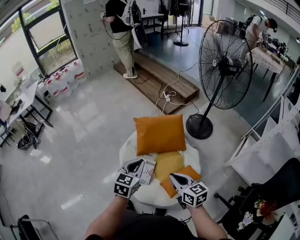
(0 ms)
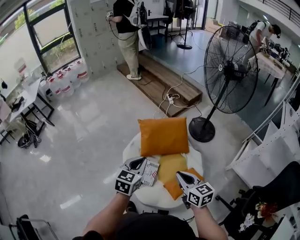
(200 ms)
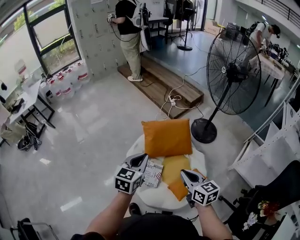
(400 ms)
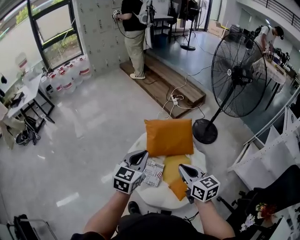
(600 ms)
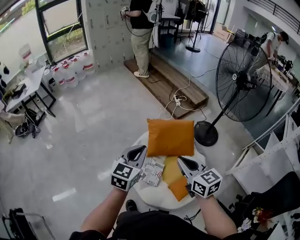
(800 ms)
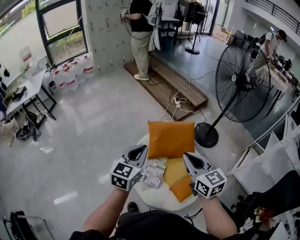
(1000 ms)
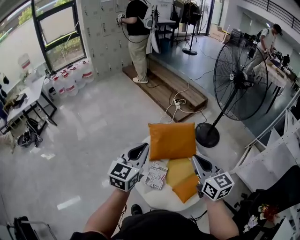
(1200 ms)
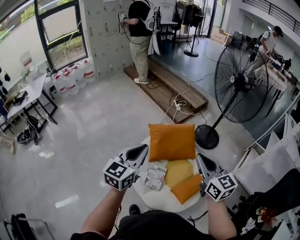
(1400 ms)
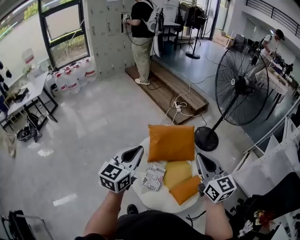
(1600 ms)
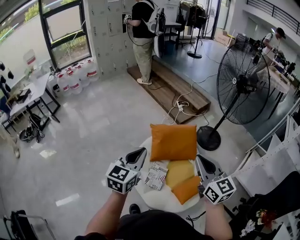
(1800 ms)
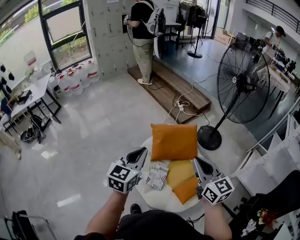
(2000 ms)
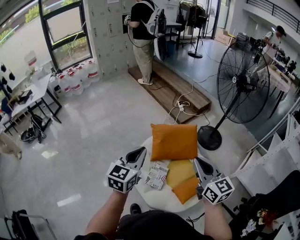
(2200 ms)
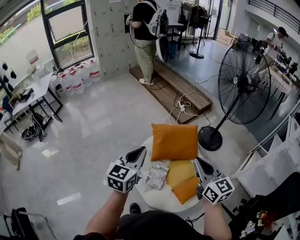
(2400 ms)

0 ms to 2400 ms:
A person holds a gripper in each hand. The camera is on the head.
0 ms to 1200 ms: The right gripper heads upward, to the left and forward, covering roughly 20 cm, and swivels about 20 degrees, while the left gripper heads to the left and upward, covering approximately 20 cm, and changes its angle by approximately 20 degrees.
1200 ms to 2400 ms: The grippers make only small movements.

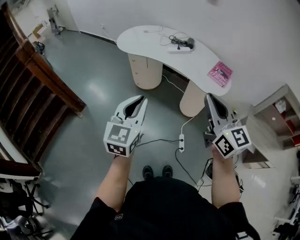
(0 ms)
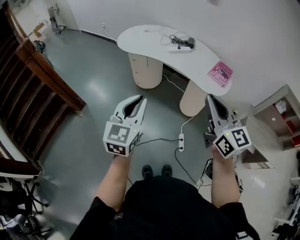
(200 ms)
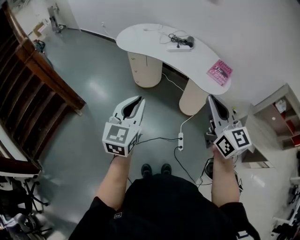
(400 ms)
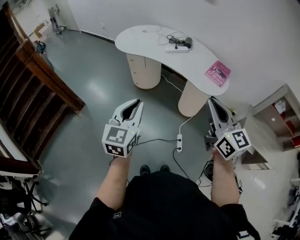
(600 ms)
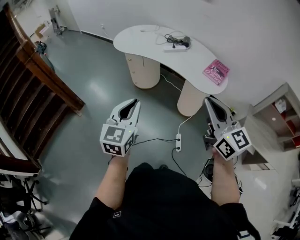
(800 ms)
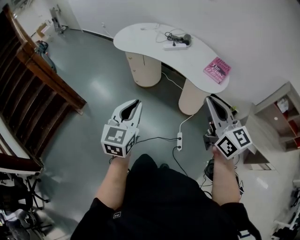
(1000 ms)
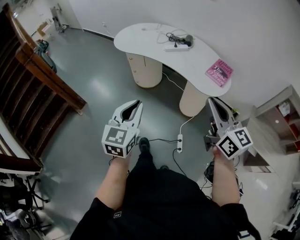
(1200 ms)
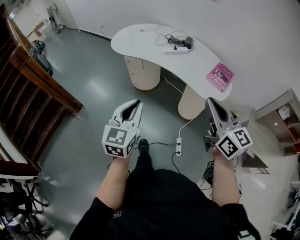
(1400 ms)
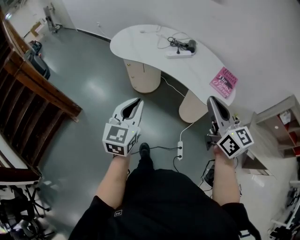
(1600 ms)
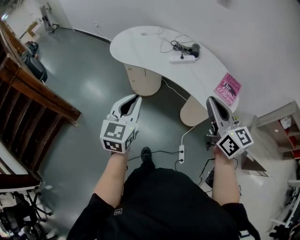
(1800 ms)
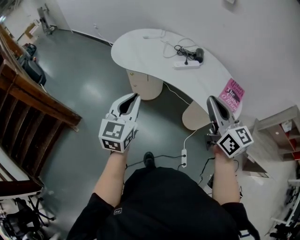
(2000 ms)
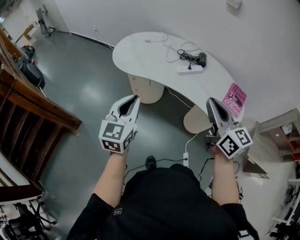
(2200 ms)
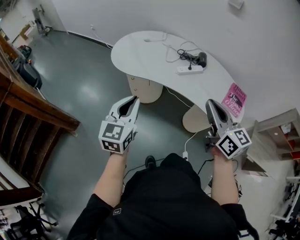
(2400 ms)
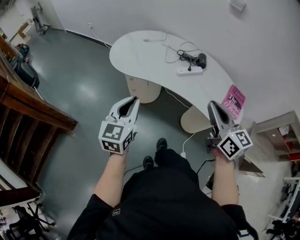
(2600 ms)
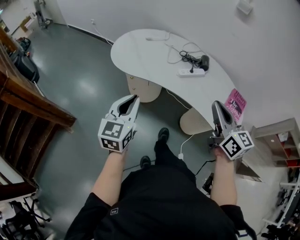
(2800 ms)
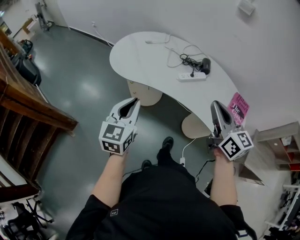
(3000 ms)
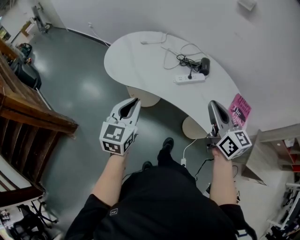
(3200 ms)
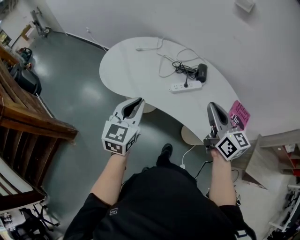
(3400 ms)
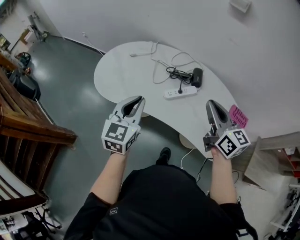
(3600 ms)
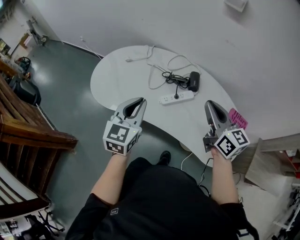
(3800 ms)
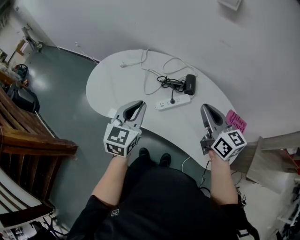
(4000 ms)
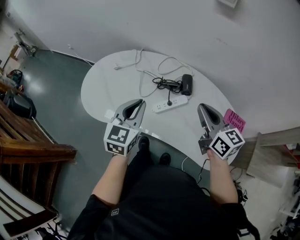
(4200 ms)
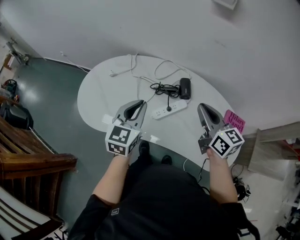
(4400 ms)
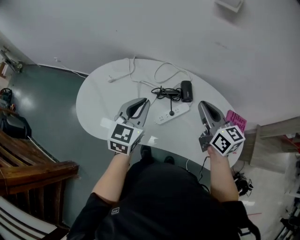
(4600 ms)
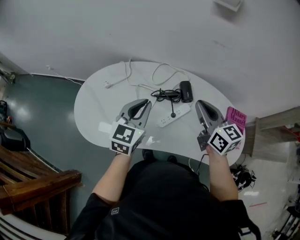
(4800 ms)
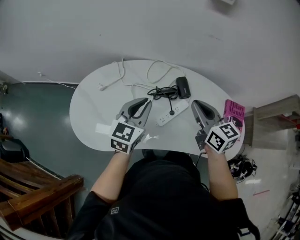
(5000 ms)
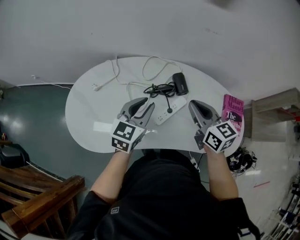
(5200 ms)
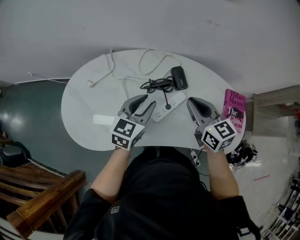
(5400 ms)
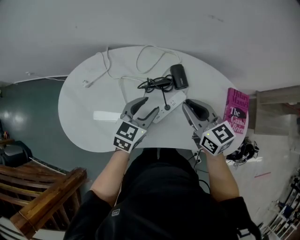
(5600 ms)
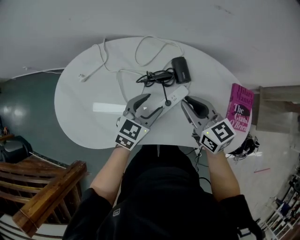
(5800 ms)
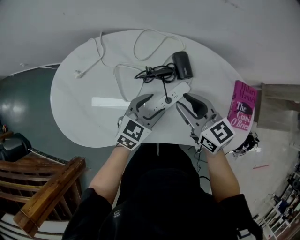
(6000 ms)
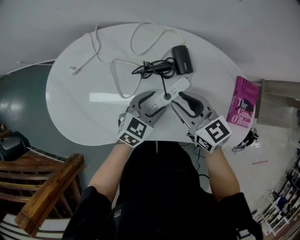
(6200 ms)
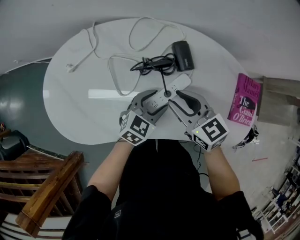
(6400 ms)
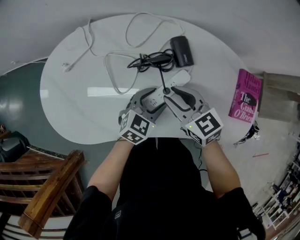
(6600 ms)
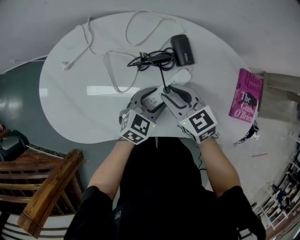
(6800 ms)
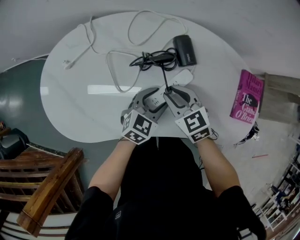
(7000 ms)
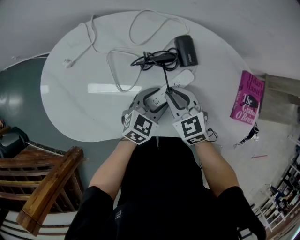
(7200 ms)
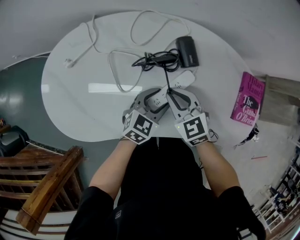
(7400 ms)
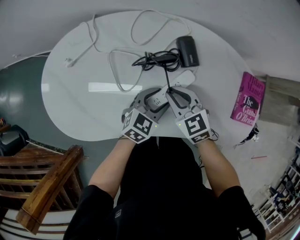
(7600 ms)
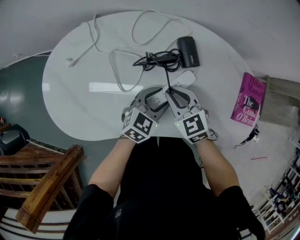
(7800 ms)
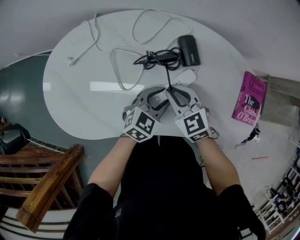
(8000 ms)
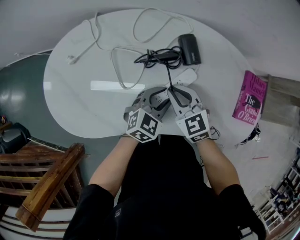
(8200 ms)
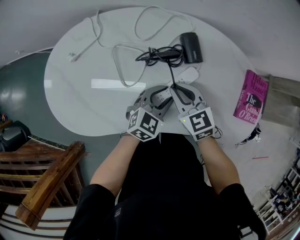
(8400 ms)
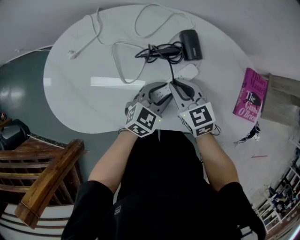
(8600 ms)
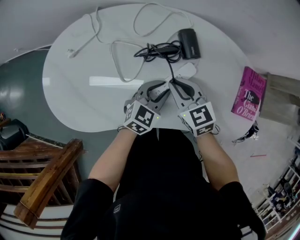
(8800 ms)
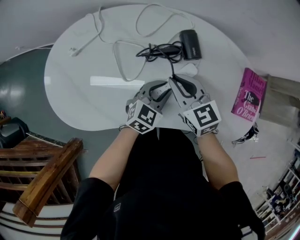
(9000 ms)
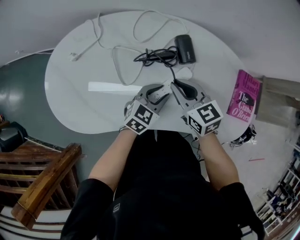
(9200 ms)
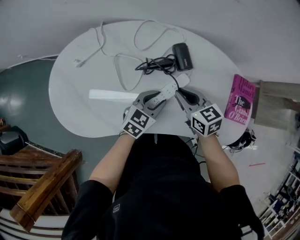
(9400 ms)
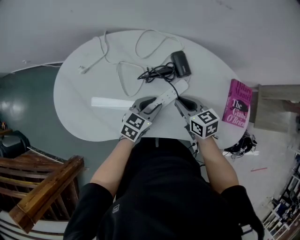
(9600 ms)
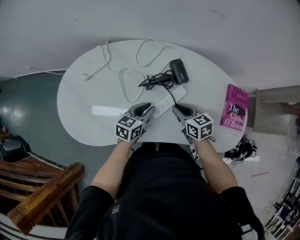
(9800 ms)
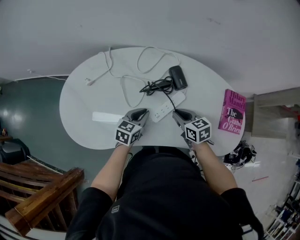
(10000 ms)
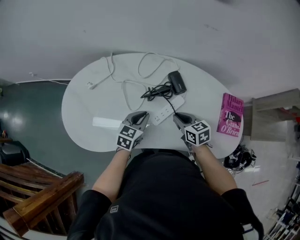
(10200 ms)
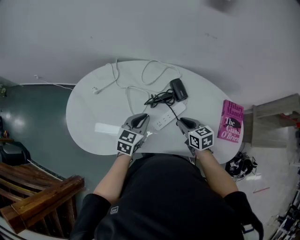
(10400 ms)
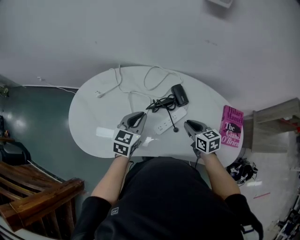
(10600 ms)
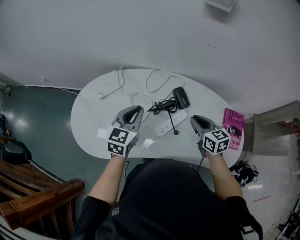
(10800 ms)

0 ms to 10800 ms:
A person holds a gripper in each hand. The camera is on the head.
0 ms to 1600 ms: Both grippers move forward, about 15 cm.
1600 ms to 3000 ms: The left gripper travels forward and to the left by approximately 25 cm. The right gripper moves forward, roughly 25 cm.
3000 ms to 4600 ms: The right gripper shifts about 30 cm forward, while the left gripper goes approximately 40 cm forward and to the right, and rotates approximately 20 degrees.
4600 ms to 6200 ms: The right gripper is displaced downward and to the left by about 15 cm, and opens up. Meanwhile the left gripper is displaced downward by approximately 25 cm, changes its angle by roughly 40 degrees, and opens up.
6200 ms to 7800 ms: The right gripper heads downward, covering approximately 10 cm, and turns by some 20 degrees.
7800 ms to 9200 ms: The grippers make only small movements.
9200 ms to 10800 ms: The left gripper heads upward and to the left, covering approximately 25 cm, rotates approximately 30 degrees, and closes up, while the right gripper heads to the right and upward, covering about 10 cm.

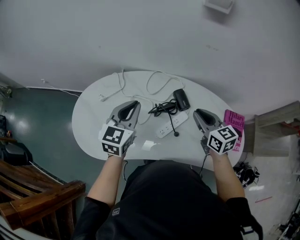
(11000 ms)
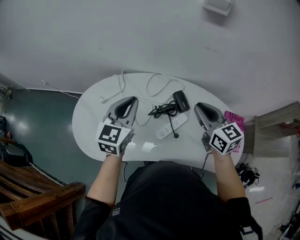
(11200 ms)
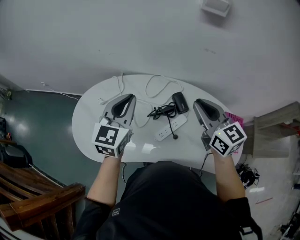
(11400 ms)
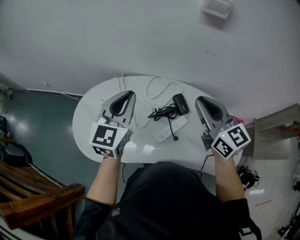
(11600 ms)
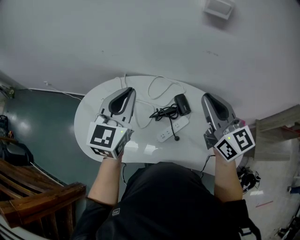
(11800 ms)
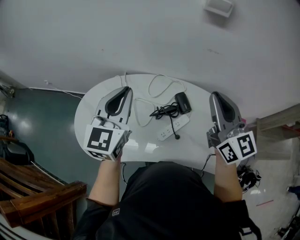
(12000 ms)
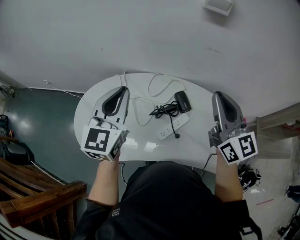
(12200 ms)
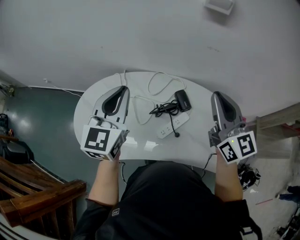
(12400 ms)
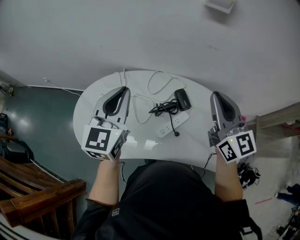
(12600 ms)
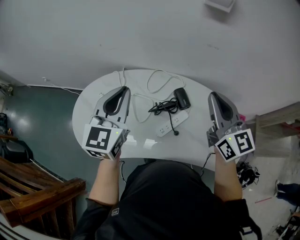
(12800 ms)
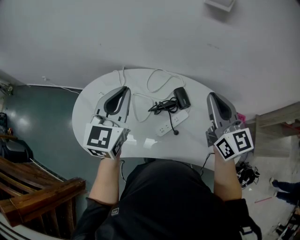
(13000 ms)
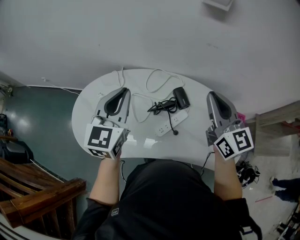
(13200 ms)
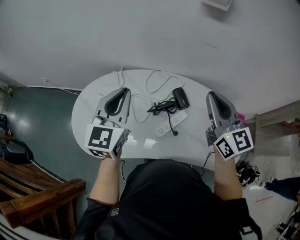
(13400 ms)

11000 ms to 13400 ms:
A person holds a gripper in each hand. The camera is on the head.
11000 ms to 12200 ms: The right gripper heads upward, covering roughly 20 cm, and swivels about 30 degrees, while the left gripper goes roughly 10 cm upward.
12200 ms to 13400 ms: There are only small adjustments of the grippers.

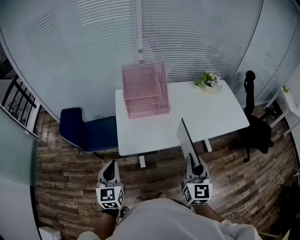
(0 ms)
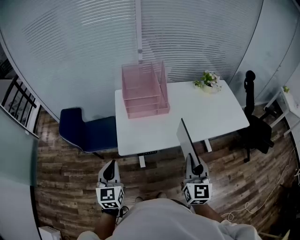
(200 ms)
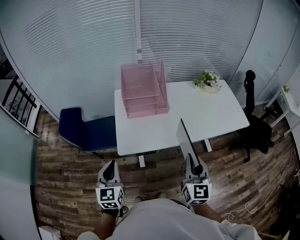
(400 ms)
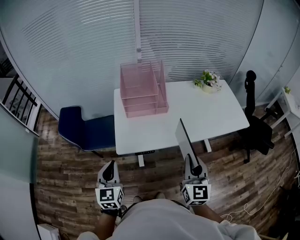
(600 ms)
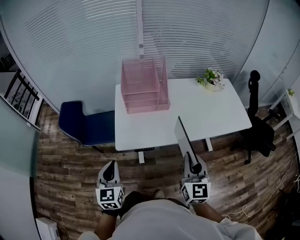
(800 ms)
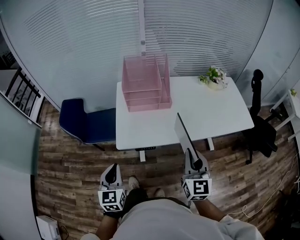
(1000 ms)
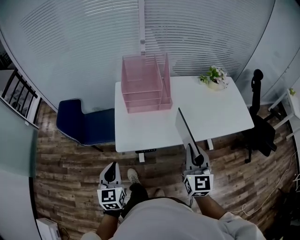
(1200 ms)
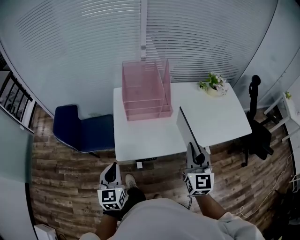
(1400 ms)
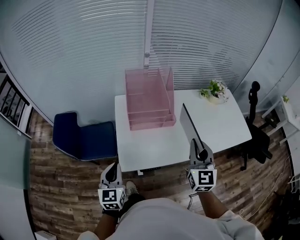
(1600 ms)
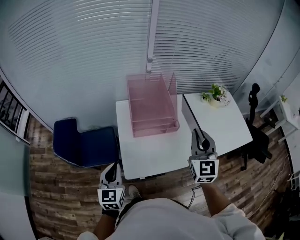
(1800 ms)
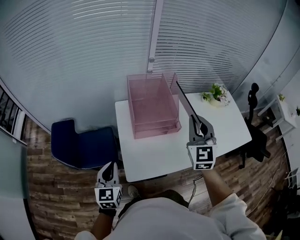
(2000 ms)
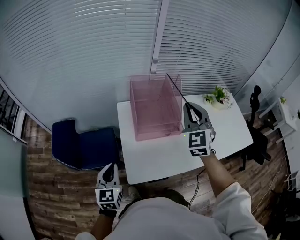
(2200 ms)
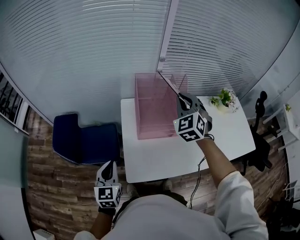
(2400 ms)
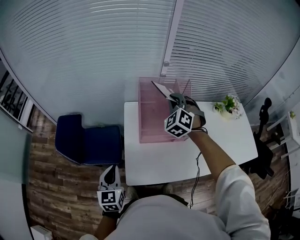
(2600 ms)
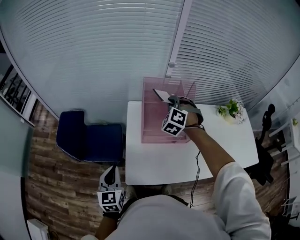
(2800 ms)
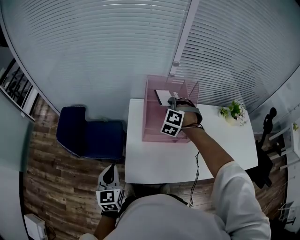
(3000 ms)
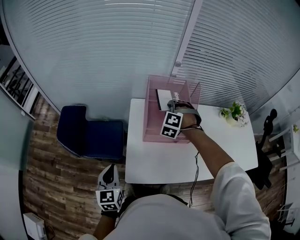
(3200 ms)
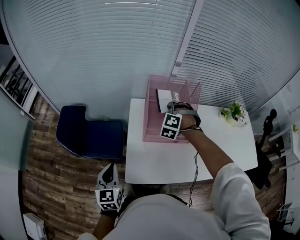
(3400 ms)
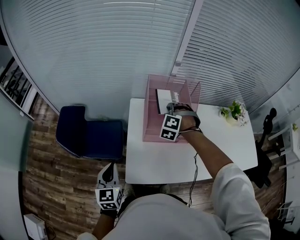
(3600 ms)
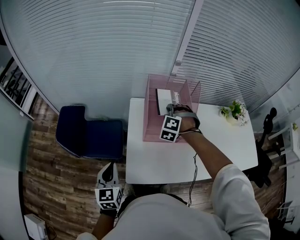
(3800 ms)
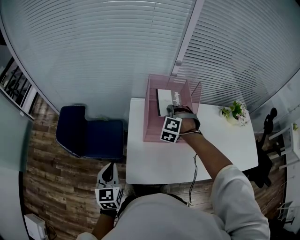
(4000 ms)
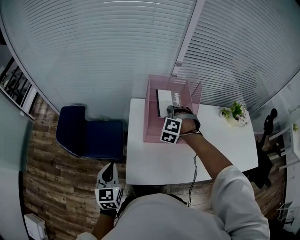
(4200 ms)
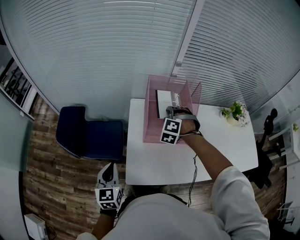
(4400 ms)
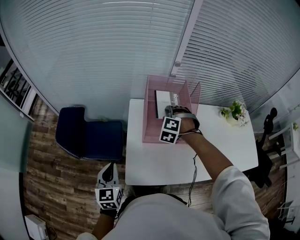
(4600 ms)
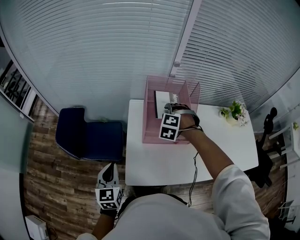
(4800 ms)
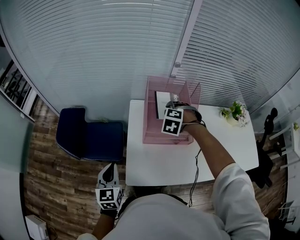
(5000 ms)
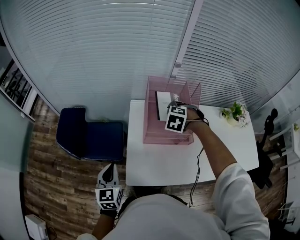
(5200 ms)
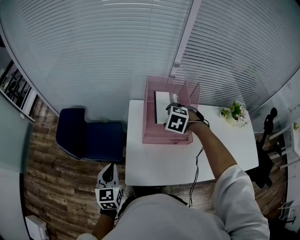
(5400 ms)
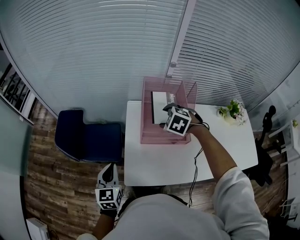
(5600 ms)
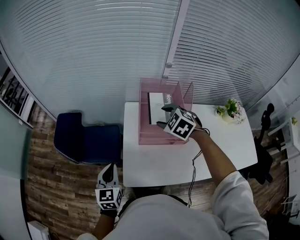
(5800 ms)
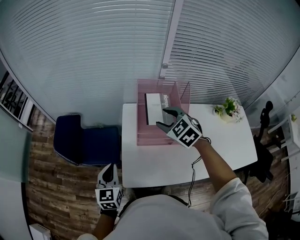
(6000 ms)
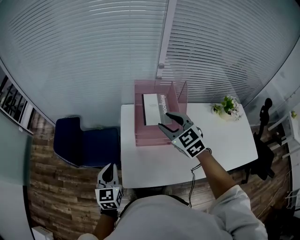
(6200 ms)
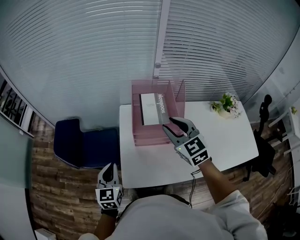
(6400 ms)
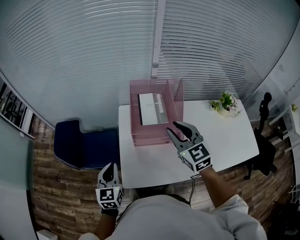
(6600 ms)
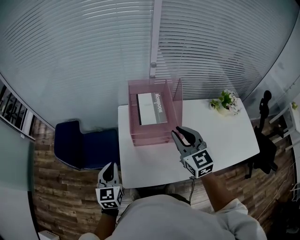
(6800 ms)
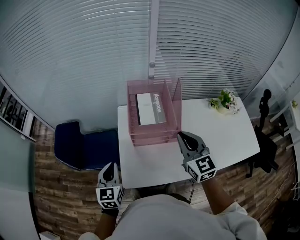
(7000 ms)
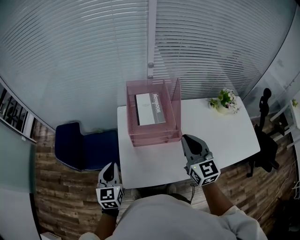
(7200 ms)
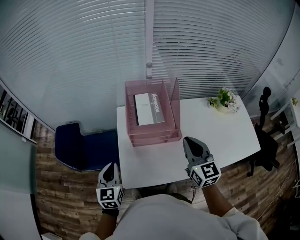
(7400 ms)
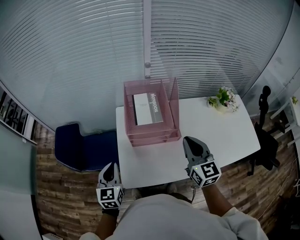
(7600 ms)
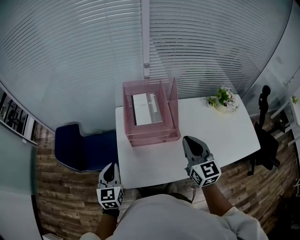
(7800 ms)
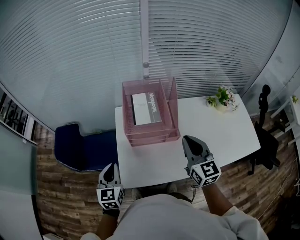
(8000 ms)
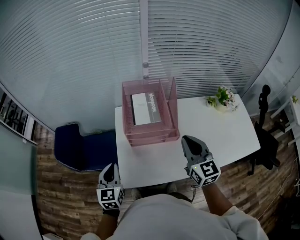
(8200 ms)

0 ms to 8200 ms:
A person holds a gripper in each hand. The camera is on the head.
0 ms to 1600 ms: The grippers both shift forward by about 15 cm.
1600 ms to 3200 ms: The left gripper travels to the left and forward by some 10 cm. Meanwhile the right gripper moves forward and to the left, some 40 cm, and rolls counterclockwise, seen from behind, by roughly 80 degrees.
3200 ms to 5000 ms: The right gripper changes its angle by approximately 20 degrees, and opens its fingers.
5000 ms to 6600 ms: The left gripper is displaced to the right by some 5 cm, while the right gripper is displaced upward and backward by about 20 cm, tilts its fingers approximately 50 degrees upward, and closes.
6600 ms to 8200 ms: The right gripper travels to the right and backward by approximately 10 cm, and closes its fingers.
